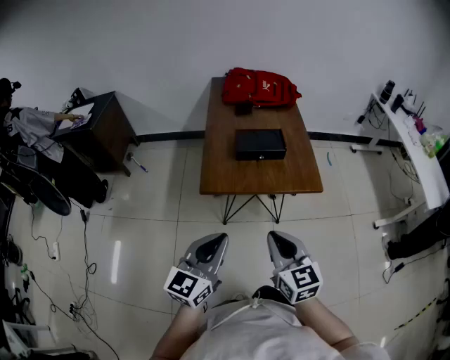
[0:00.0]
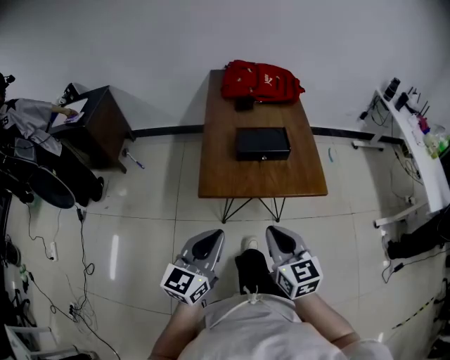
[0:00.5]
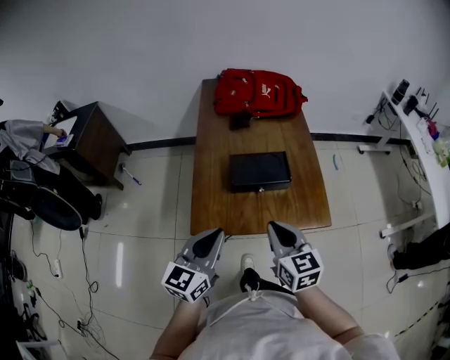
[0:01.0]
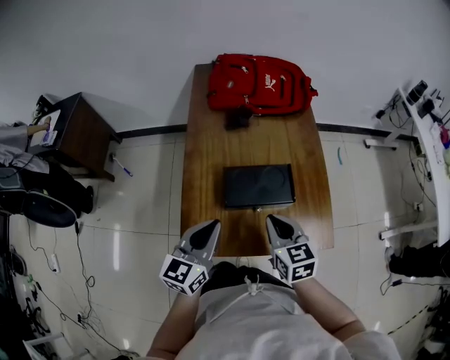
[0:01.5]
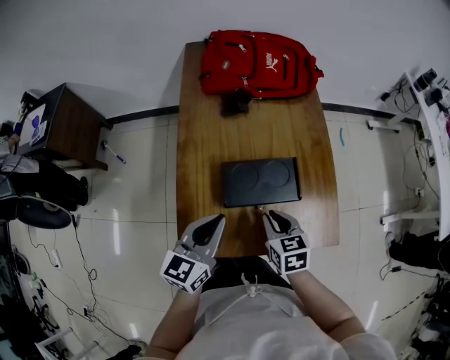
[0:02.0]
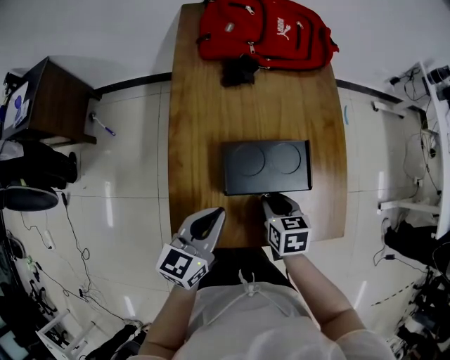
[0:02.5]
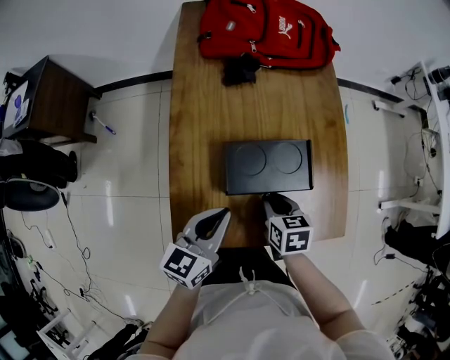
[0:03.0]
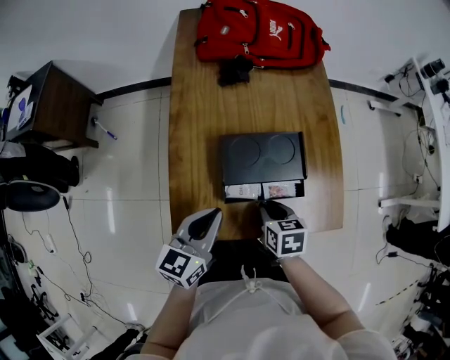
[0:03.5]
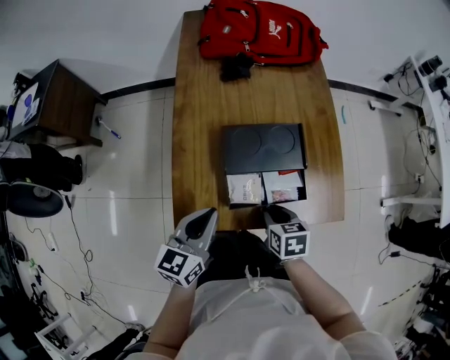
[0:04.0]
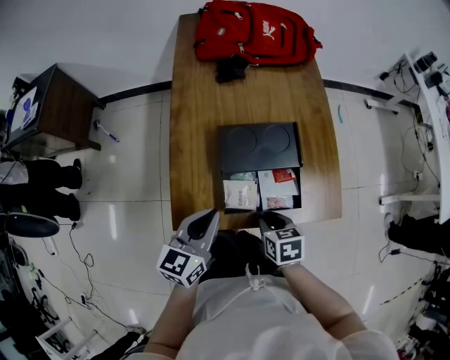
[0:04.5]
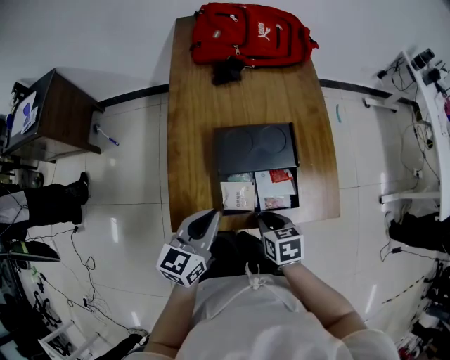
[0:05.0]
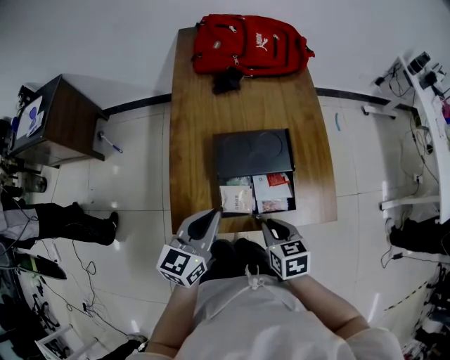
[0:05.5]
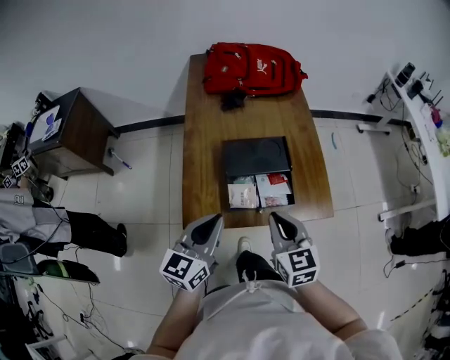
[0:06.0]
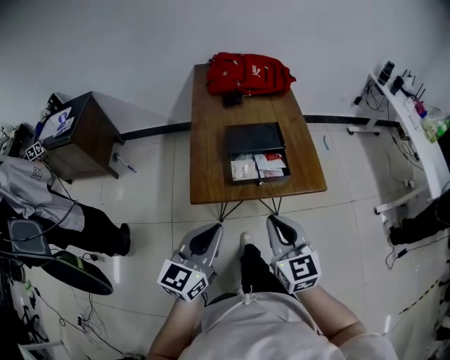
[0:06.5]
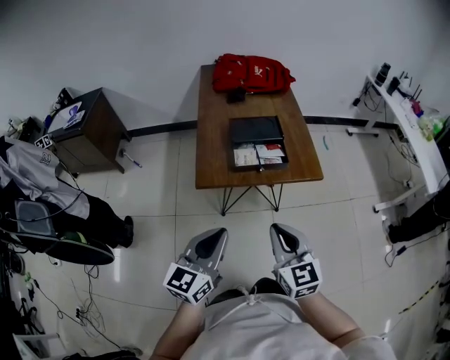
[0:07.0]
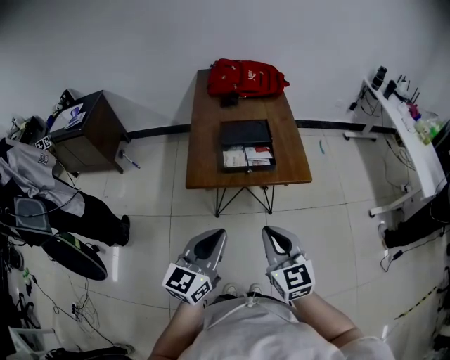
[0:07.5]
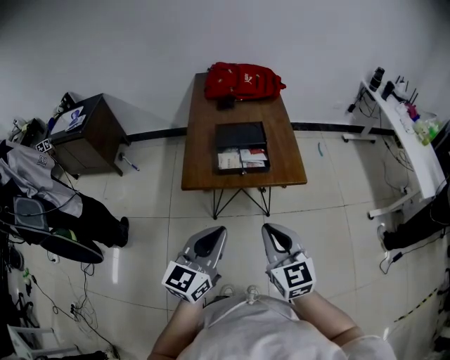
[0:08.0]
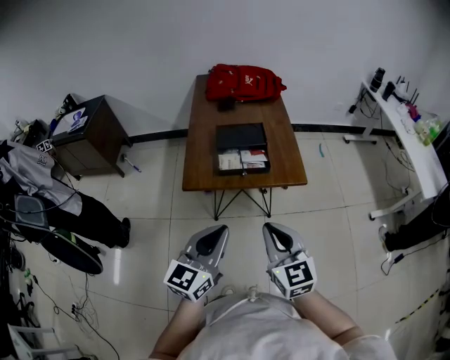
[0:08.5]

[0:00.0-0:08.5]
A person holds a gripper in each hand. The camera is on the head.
0:00.0 to 0:02.0: The pair of grippers is taken forward, about 40 cm. The right gripper shifts approximately 20 cm downward, and turns by roughly 30 degrees.
0:02.0 to 0:04.0: Both grippers travel together backward and downward, roughly 10 cm.
0:04.0 to 0:06.5: The left gripper goes approximately 25 cm backward and upward. Meanwhile the right gripper travels upward and backward by approximately 30 cm, and angles its fingers upward, by approximately 40 degrees.
0:06.5 to 0:08.5: The grippers both shift backward and to the right by roughly 15 cm.

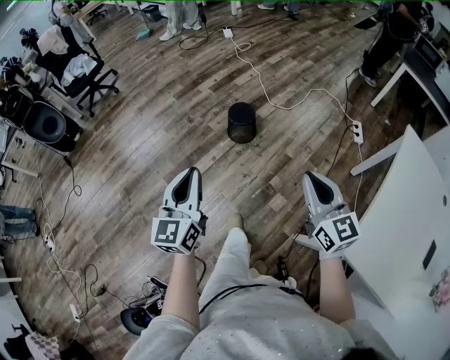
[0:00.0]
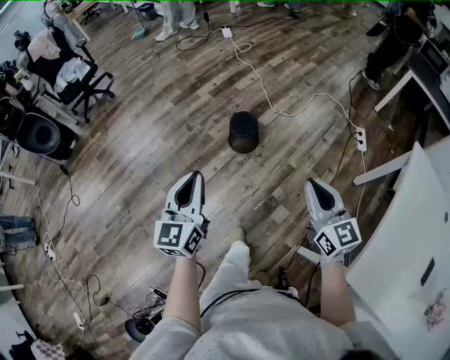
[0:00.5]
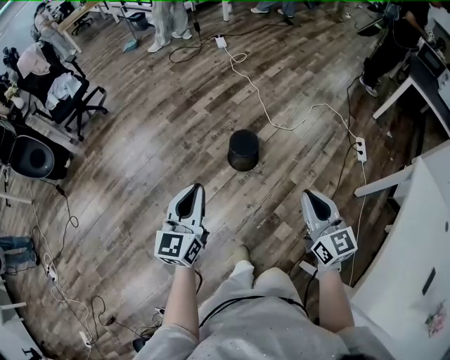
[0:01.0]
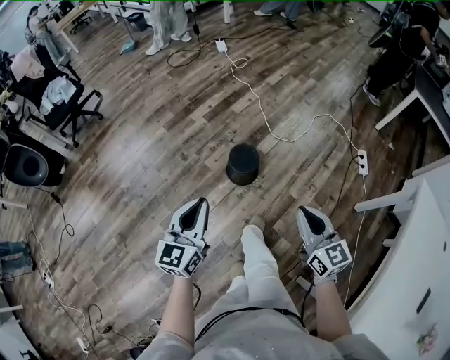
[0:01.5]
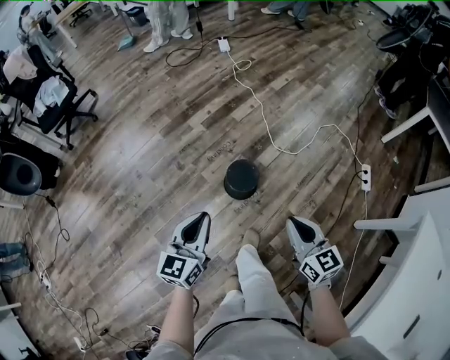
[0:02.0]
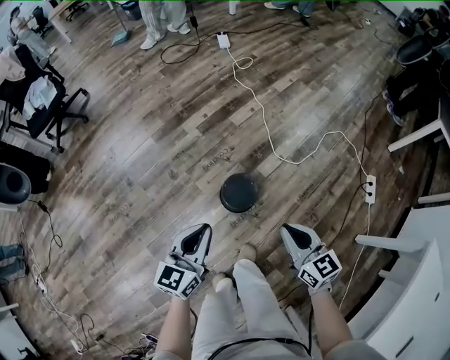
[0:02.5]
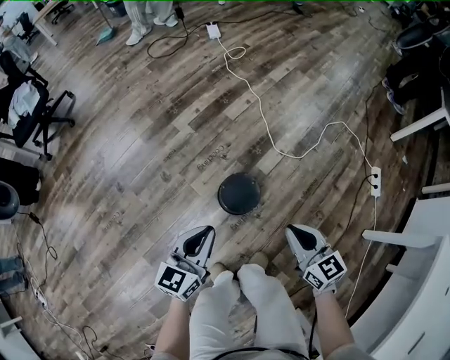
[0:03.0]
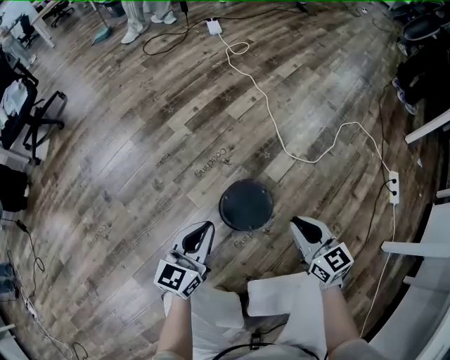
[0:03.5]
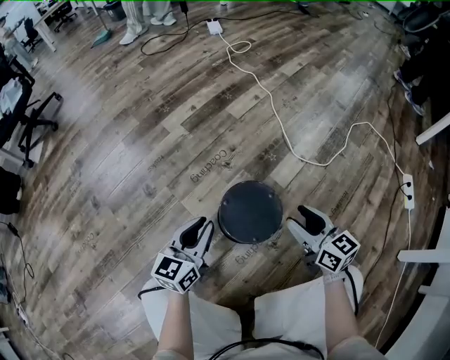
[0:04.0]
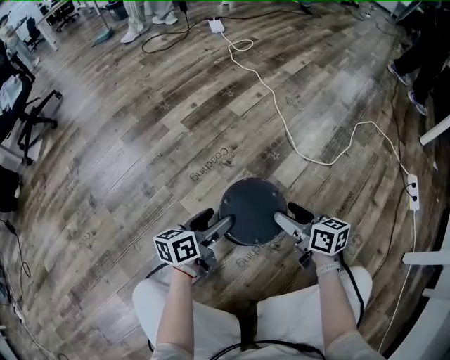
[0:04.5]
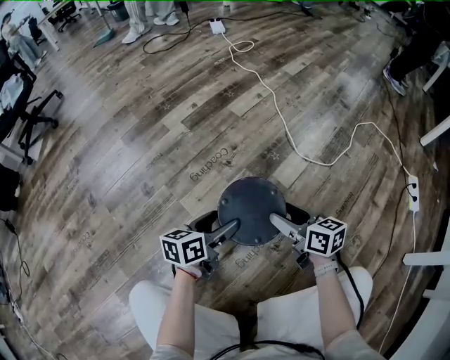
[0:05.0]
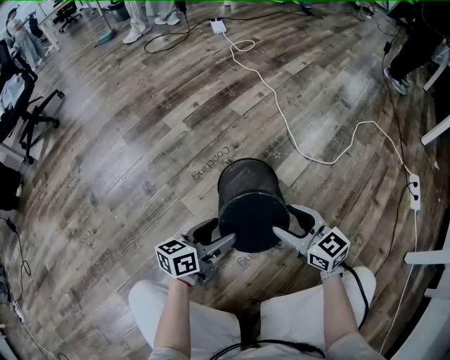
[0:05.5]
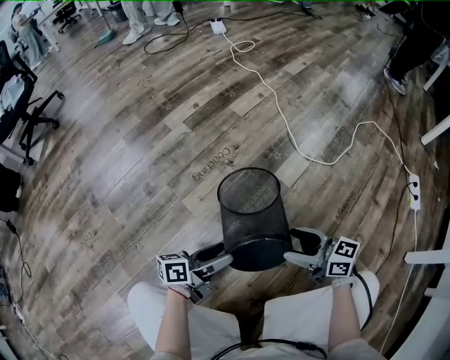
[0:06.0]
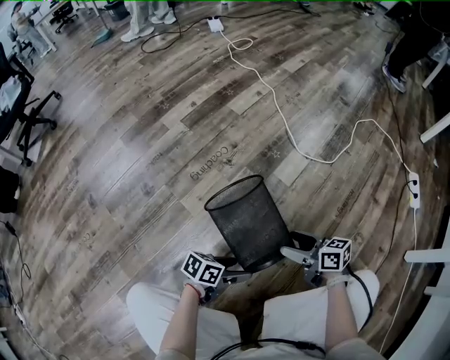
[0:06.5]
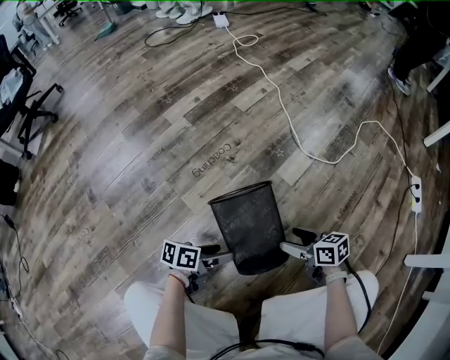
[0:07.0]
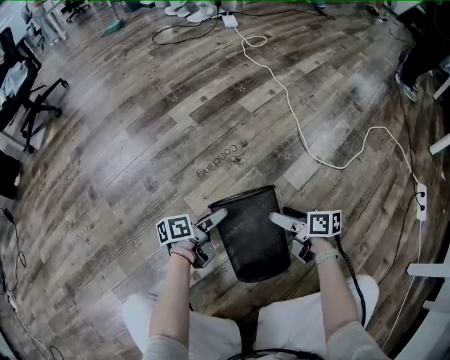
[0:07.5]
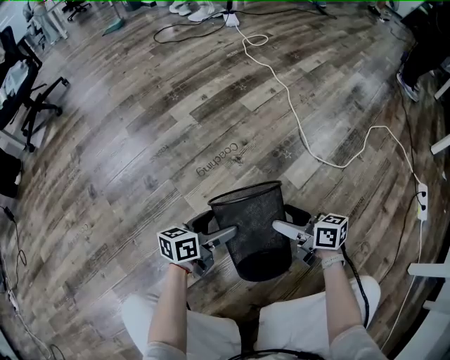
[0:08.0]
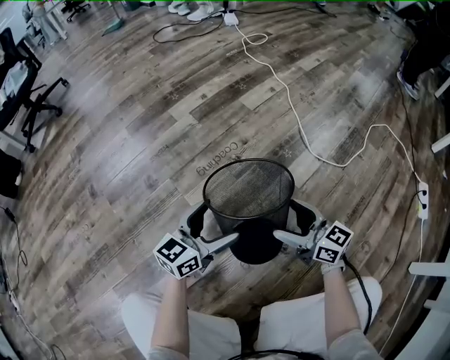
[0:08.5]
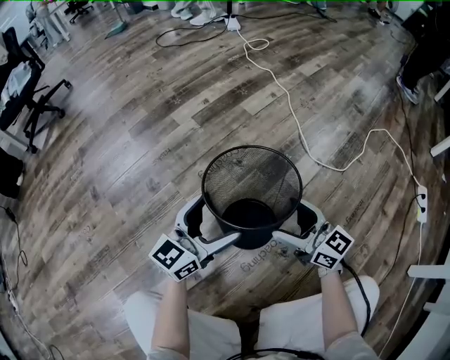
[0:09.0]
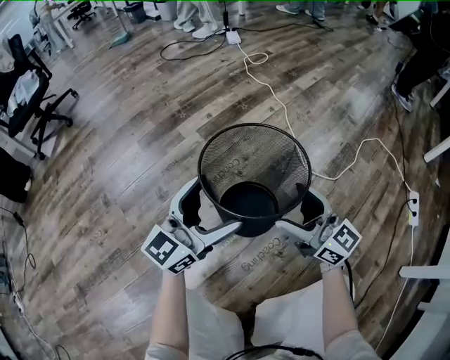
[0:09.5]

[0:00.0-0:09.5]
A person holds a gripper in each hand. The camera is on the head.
0:00.0 to 0:02.0: The two grippers travel together, forward, about 40 cm.
0:02.0 to 0:04.0: The right gripper goes roughly 60 cm downward and forward, and opens; the left gripper heads downward, covering about 50 cm.
0:04.0 to 0:05.5: The grippers both shift downward by roughly 5 cm. The left gripper swivels about 30 degrees, and opens.
0:05.5 to 0:07.5: The grippers both shift downward by some 10 cm. The left gripper swivels approximately 40 degrees. The right gripper twists roughly 50 degrees clockwise, seen from behind.
0:07.5 to 0:09.5: Both grippers move upward, some 30 cm. The right gripper rolls counterclockwise, seen from behind, by about 50 degrees; the left gripper twists approximately 70 degrees clockwise, seen from behind.

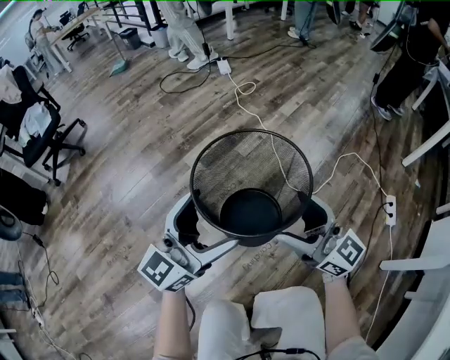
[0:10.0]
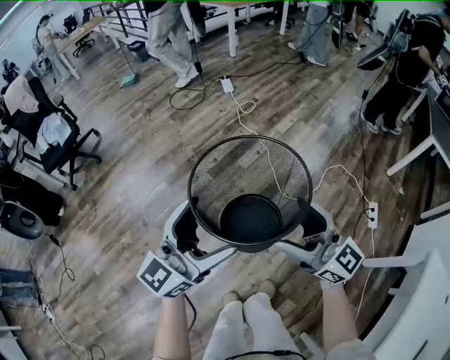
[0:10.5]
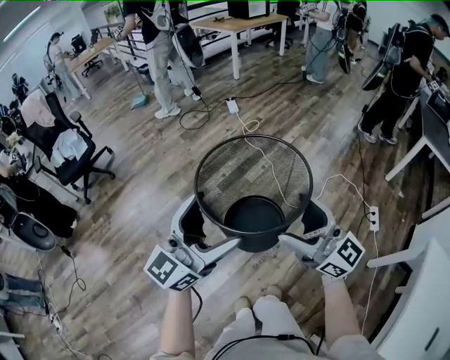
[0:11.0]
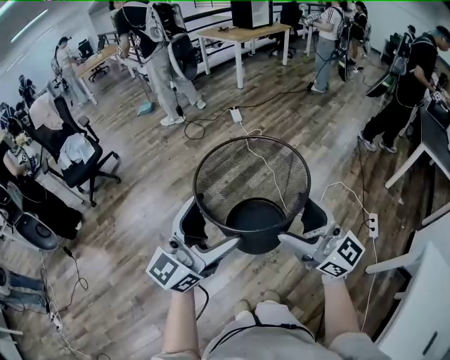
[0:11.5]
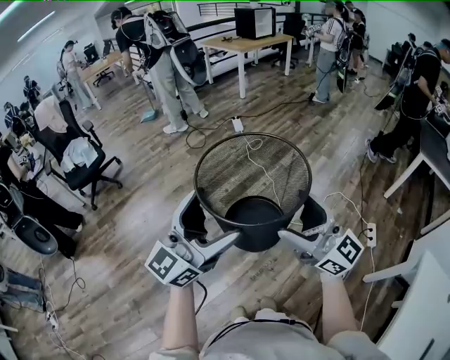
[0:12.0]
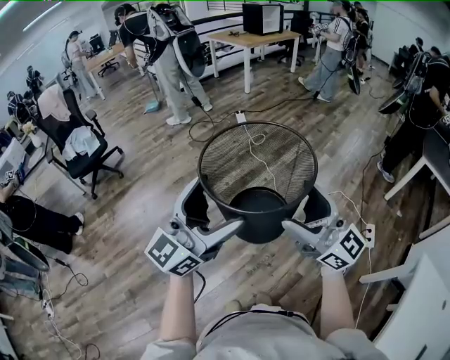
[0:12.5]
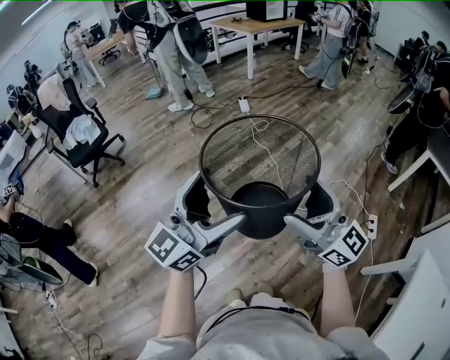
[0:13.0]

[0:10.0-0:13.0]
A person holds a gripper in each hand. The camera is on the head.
0:10.0 to 0:11.5: Both grippers travel together upward, approximately 40 cm.
0:11.5 to 0:13.0: The grippers move only a little.

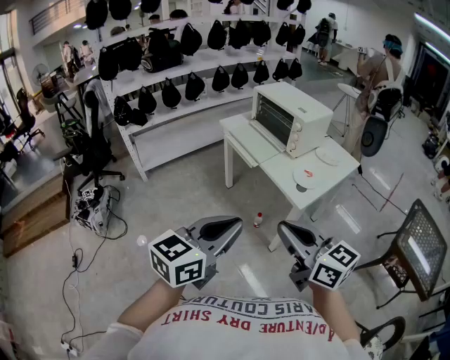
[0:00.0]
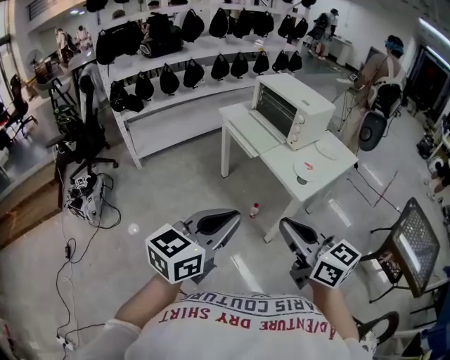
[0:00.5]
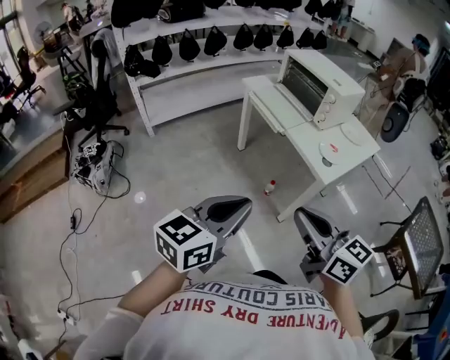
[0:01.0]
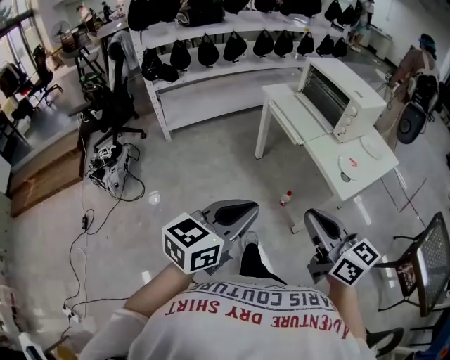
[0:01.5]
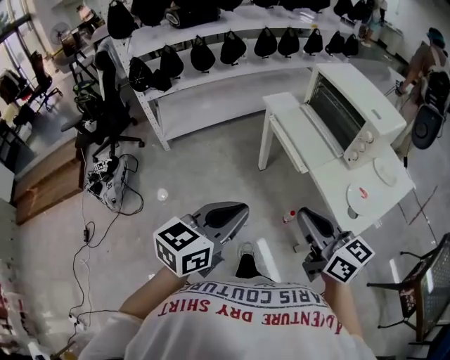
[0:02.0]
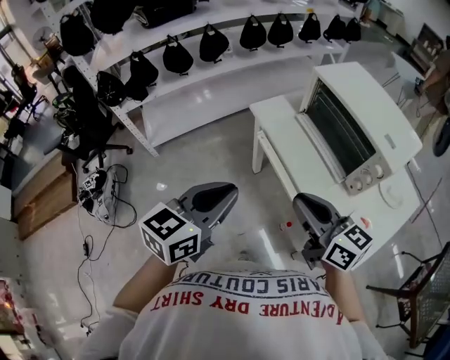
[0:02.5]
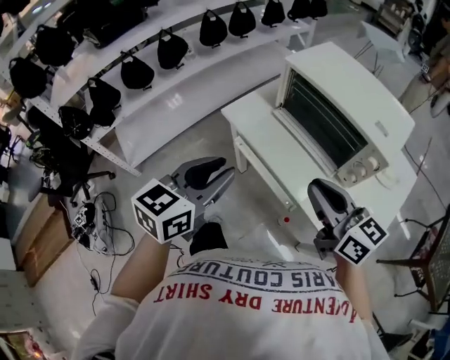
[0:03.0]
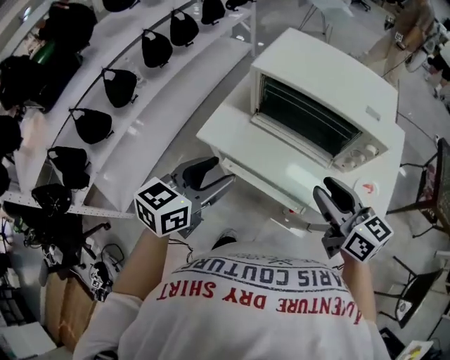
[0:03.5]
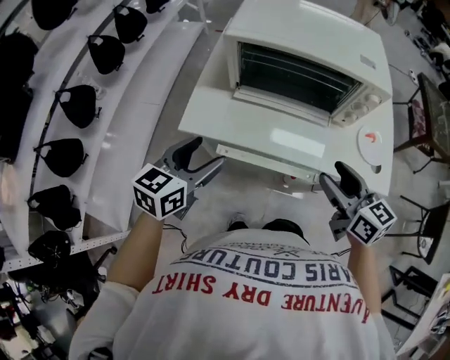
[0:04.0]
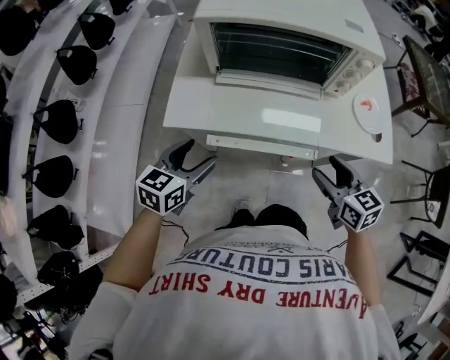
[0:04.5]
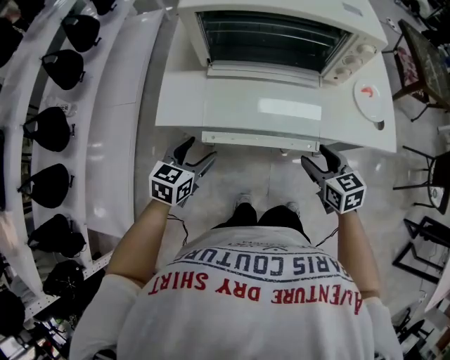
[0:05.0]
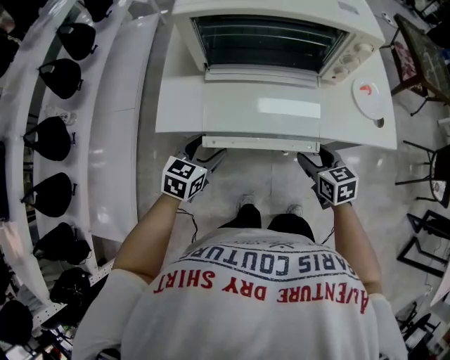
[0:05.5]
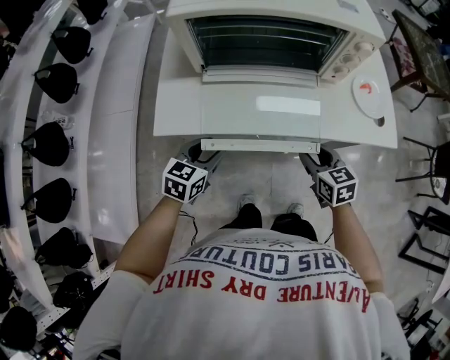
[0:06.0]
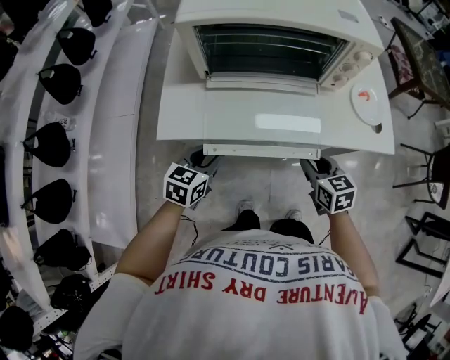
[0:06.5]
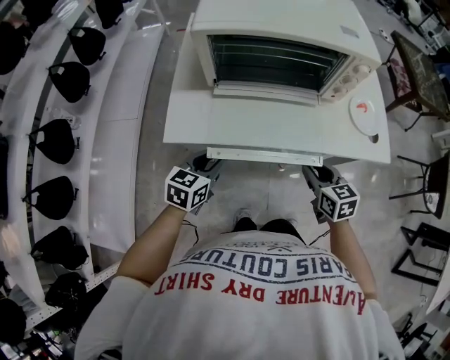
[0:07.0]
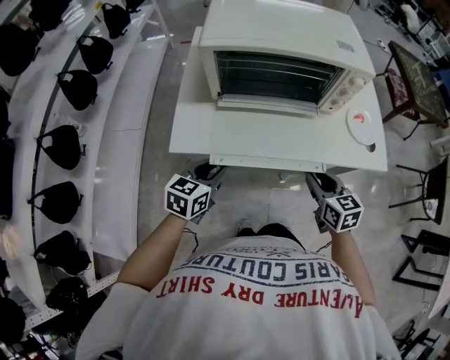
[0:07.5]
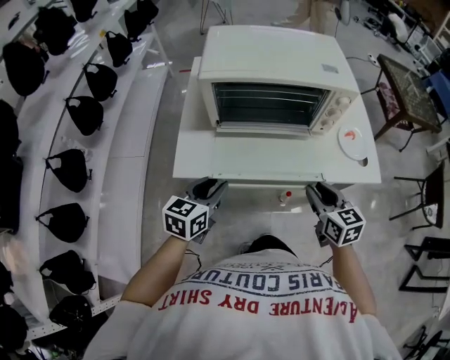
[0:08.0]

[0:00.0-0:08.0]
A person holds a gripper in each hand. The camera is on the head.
0:00.0 to 0:02.0: The two grippers go roughly 25 cm forward and to the left.
0:02.0 to 0:04.0: The right gripper shifts by about 30 cm, turns by roughly 60 degrees, and opens. The left gripper moves about 50 cm, turns by approximately 50 degrees, and opens.
0:04.0 to 0:06.0: The two grippers go some 20 cm downward. The right gripper changes its angle by some 30 degrees, and closes its fingers.
0:06.0 to 0:08.0: Both grippers move upward, some 10 cm.
